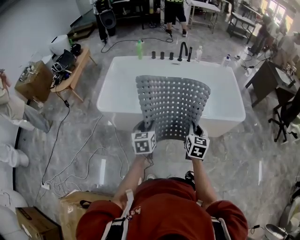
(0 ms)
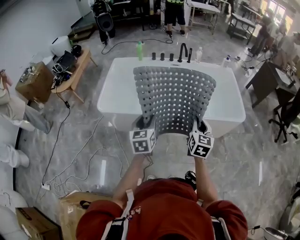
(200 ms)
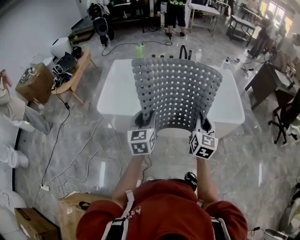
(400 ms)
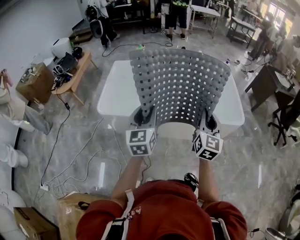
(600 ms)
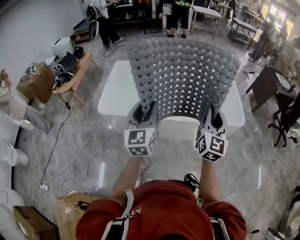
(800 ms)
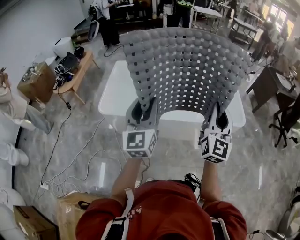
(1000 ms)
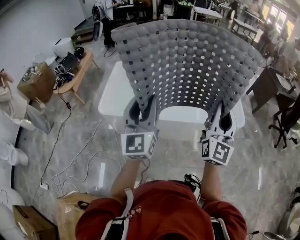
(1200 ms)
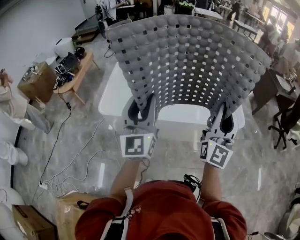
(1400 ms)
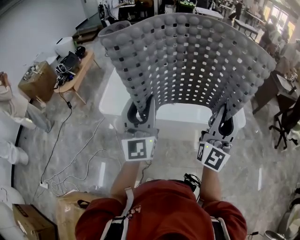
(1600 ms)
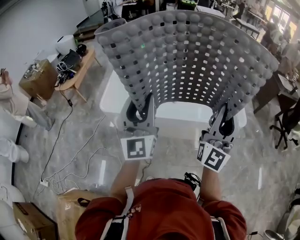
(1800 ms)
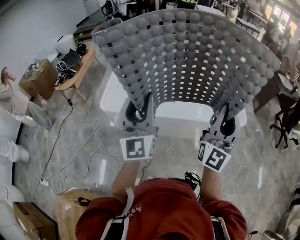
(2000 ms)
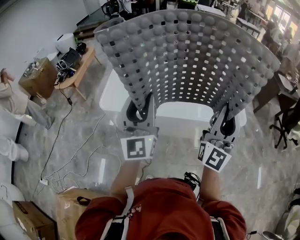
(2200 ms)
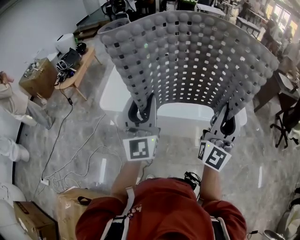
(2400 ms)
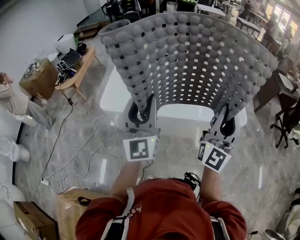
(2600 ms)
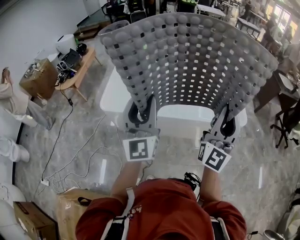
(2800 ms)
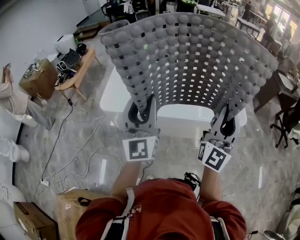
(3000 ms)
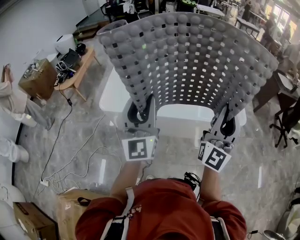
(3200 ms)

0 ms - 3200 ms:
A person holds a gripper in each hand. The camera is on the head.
0 ms - 1600 ms: Both grippers move upward, roughly 30 cm. The right gripper angles its fingers upward, by some 60 degrees. Meanwhile the left gripper tilts its fingers about 50 degrees upward.
1600 ms - 3200 ms: The grippers make only small movements.

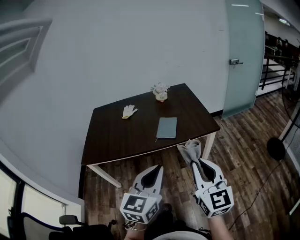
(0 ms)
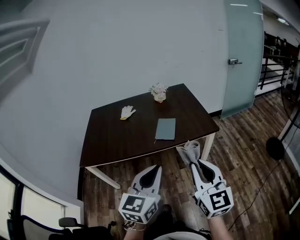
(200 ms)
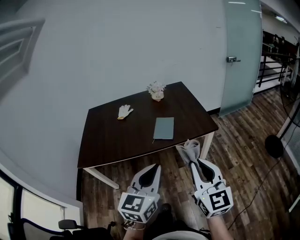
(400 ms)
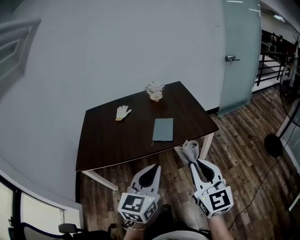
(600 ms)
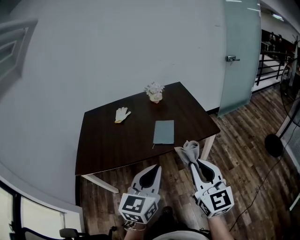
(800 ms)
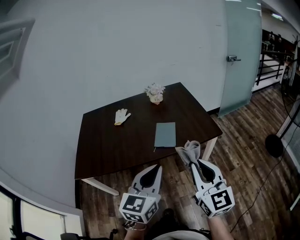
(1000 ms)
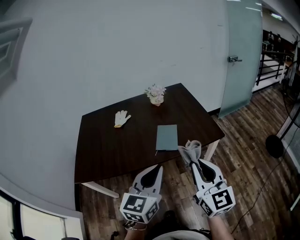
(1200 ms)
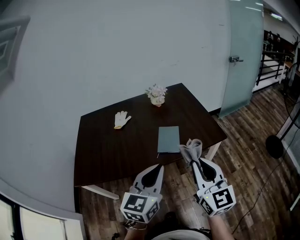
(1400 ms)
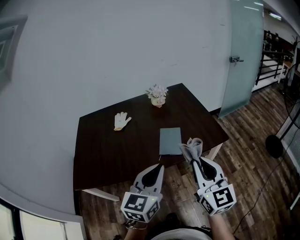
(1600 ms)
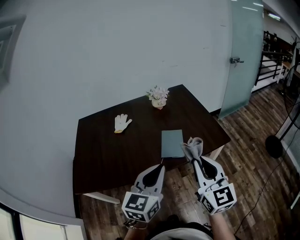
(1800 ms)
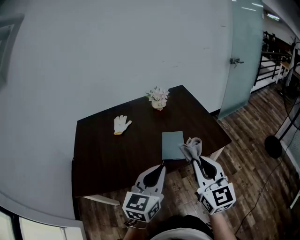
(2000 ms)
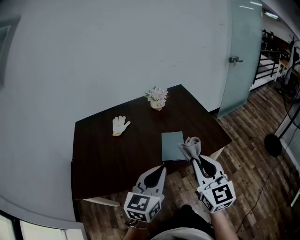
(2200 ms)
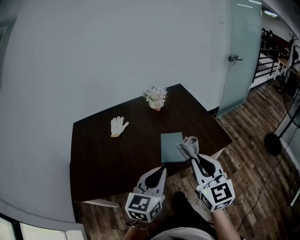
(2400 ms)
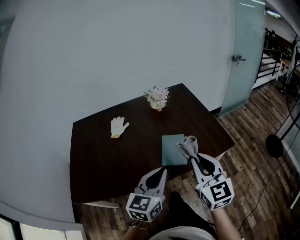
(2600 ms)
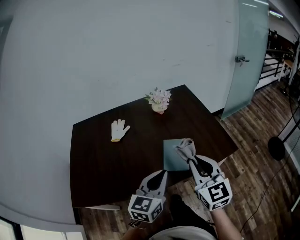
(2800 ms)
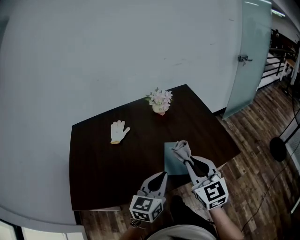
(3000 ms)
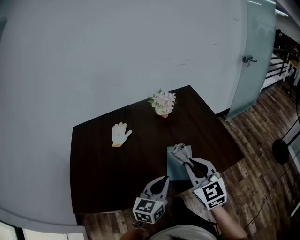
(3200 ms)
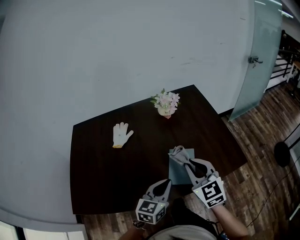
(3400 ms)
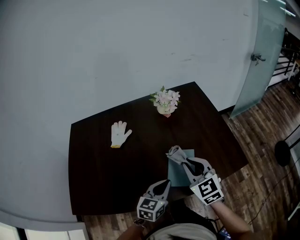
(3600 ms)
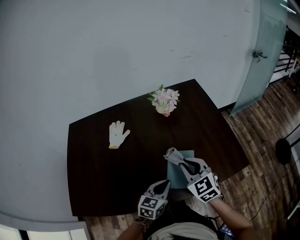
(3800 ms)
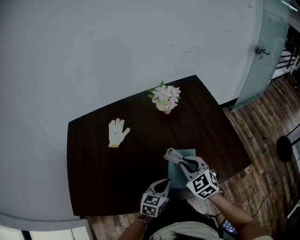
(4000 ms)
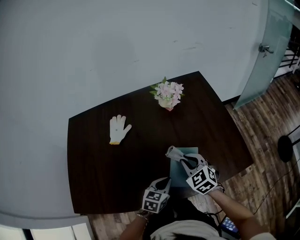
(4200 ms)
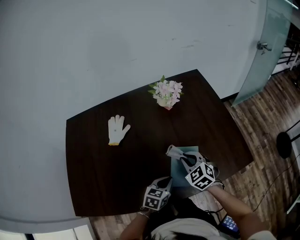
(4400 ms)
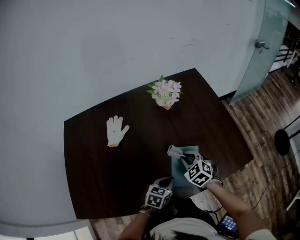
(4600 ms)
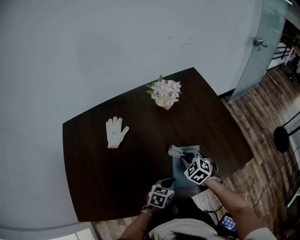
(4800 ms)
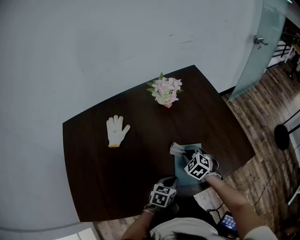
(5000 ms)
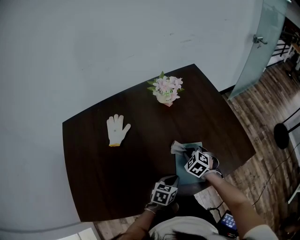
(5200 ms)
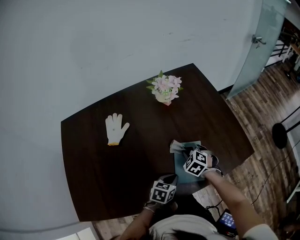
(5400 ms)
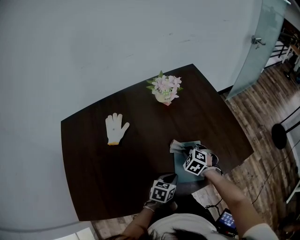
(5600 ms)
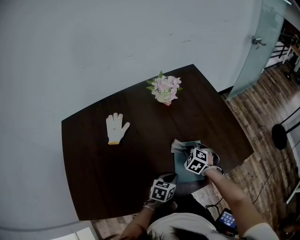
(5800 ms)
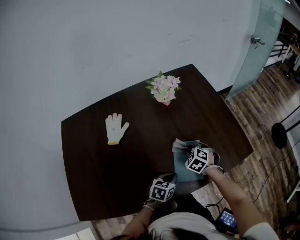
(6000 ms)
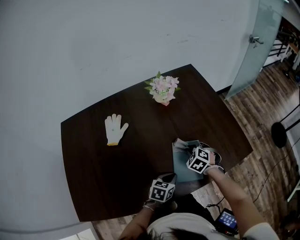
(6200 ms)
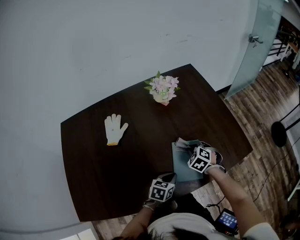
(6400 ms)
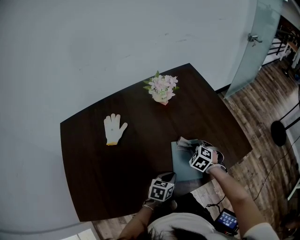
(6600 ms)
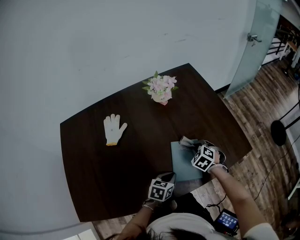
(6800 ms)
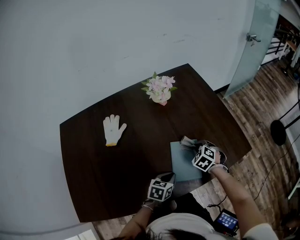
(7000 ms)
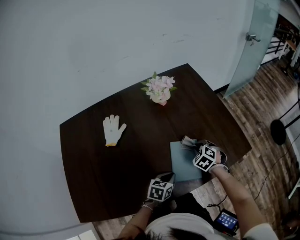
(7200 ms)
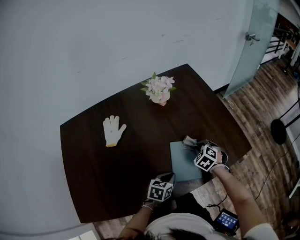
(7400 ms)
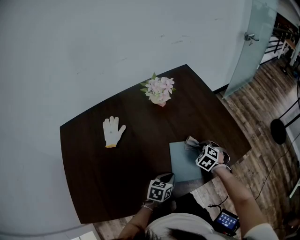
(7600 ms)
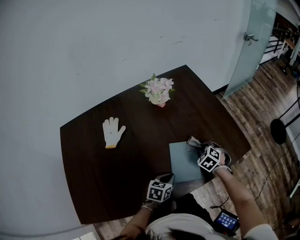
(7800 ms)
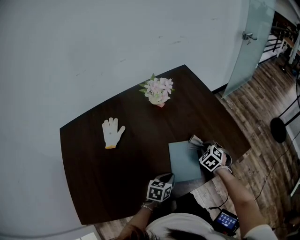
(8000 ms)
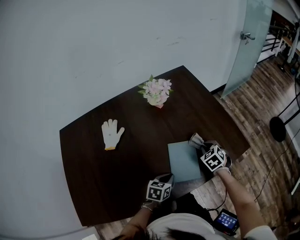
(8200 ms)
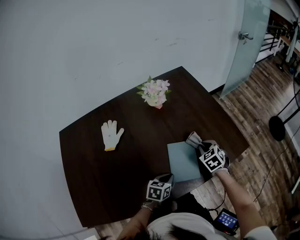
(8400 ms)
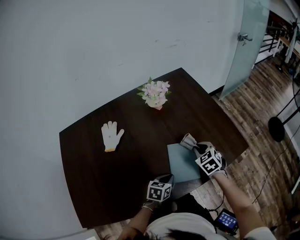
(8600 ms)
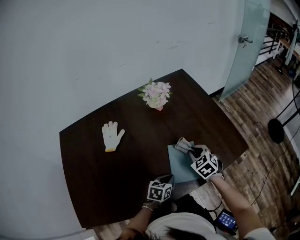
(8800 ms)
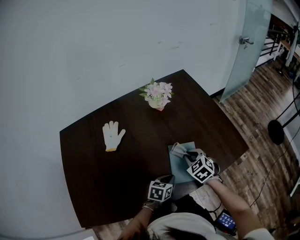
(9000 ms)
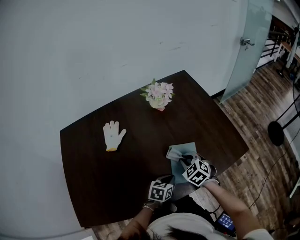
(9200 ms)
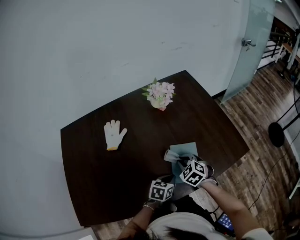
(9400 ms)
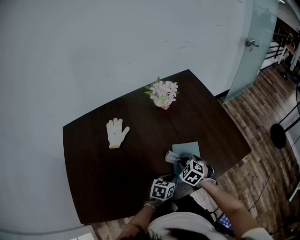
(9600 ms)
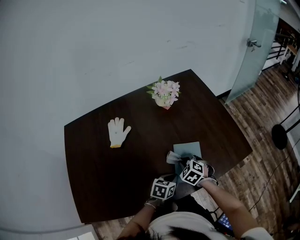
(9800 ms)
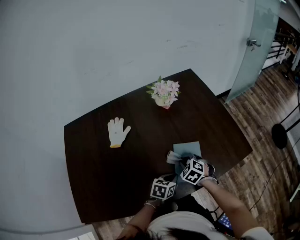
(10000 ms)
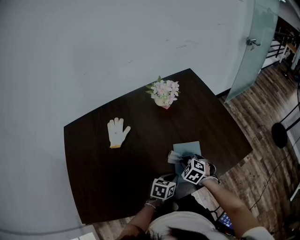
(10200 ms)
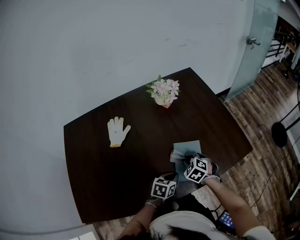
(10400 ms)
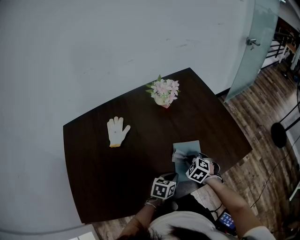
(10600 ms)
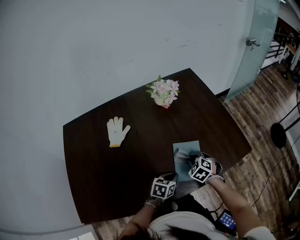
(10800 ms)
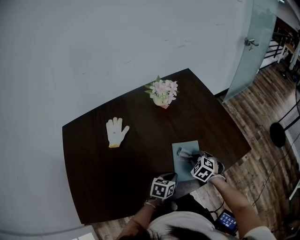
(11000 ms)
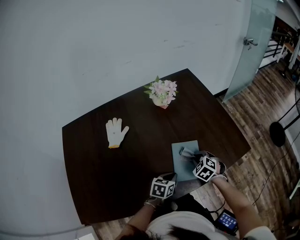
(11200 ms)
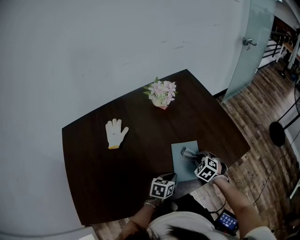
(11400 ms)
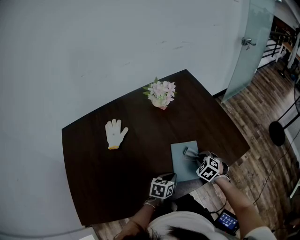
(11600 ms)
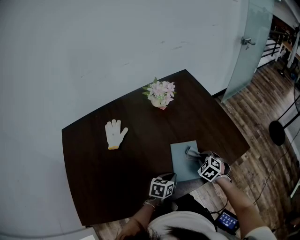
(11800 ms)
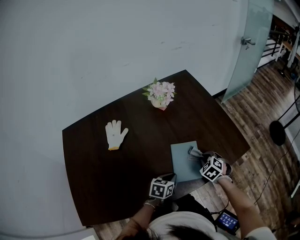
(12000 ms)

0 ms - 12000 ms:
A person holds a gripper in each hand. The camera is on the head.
0 ms - 1600 ms: Both grippers travel together forward, roughly 25 cm.
1600 ms - 3000 ms: The left gripper heads forward and downward, covering some 20 cm. Meanwhile the right gripper is displaced forward by approximately 20 cm.
3000 ms - 4400 ms: The right gripper goes about 30 cm forward and downward, and turns by approximately 30 degrees, while the left gripper shifts roughly 25 cm downward and forward, and rotates some 30 degrees.
4400 ms - 6000 ms: The right gripper shifts approximately 10 cm downward, and changes its angle by about 20 degrees.
6000 ms - 7600 ms: The right gripper is displaced to the right by some 10 cm.
7600 ms - 9000 ms: The right gripper is displaced to the left, upward and backward by about 10 cm.
9000 ms - 10400 ms: The right gripper shifts roughly 5 cm downward.
10400 ms - 12000 ms: The right gripper goes about 10 cm to the right.

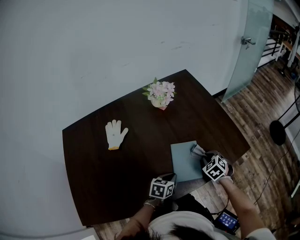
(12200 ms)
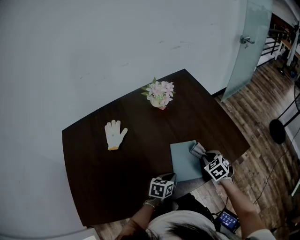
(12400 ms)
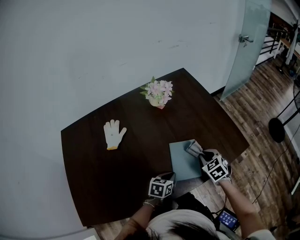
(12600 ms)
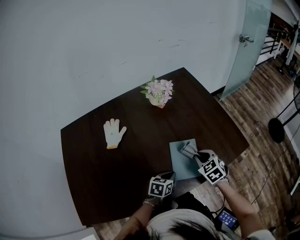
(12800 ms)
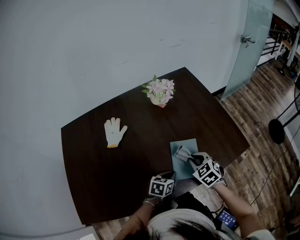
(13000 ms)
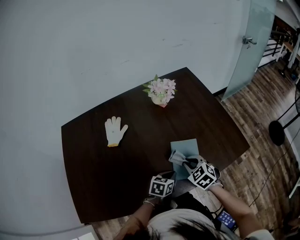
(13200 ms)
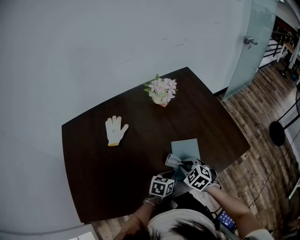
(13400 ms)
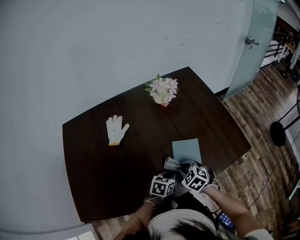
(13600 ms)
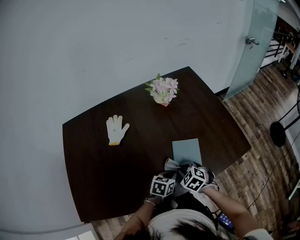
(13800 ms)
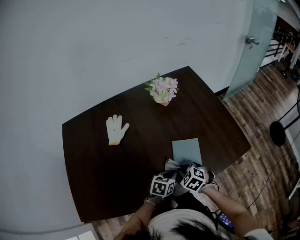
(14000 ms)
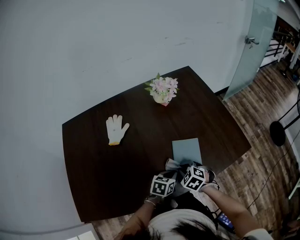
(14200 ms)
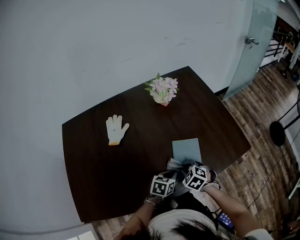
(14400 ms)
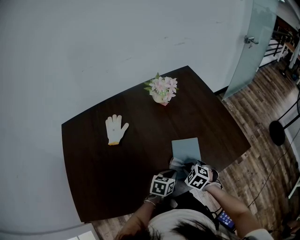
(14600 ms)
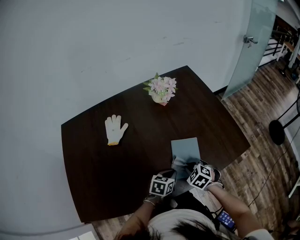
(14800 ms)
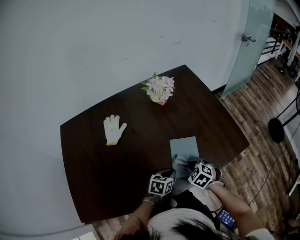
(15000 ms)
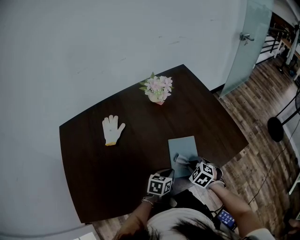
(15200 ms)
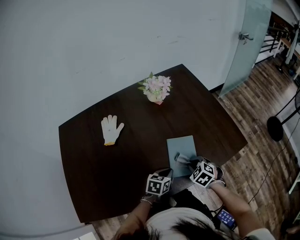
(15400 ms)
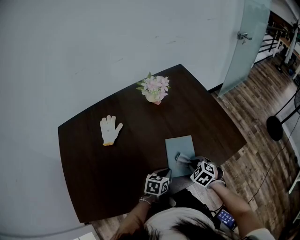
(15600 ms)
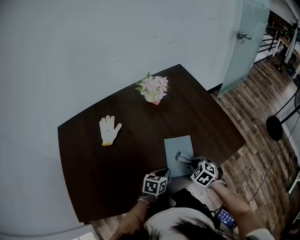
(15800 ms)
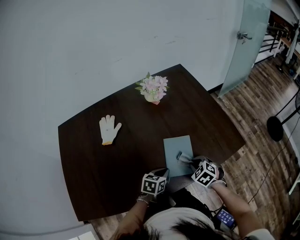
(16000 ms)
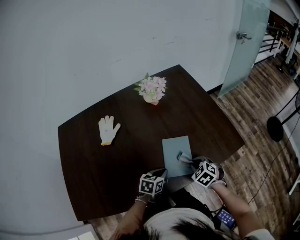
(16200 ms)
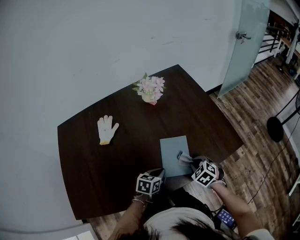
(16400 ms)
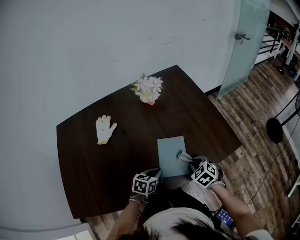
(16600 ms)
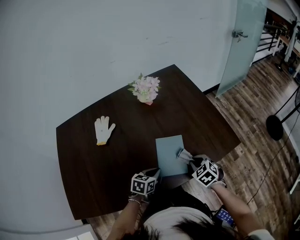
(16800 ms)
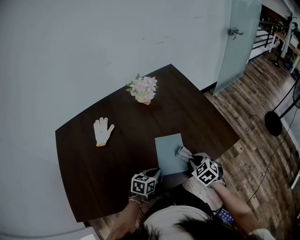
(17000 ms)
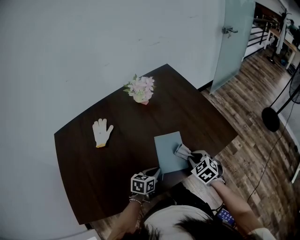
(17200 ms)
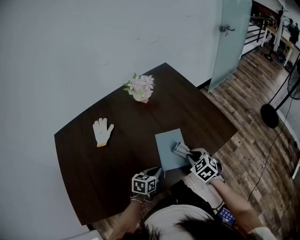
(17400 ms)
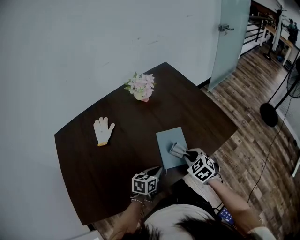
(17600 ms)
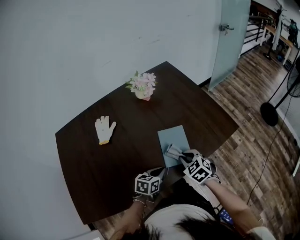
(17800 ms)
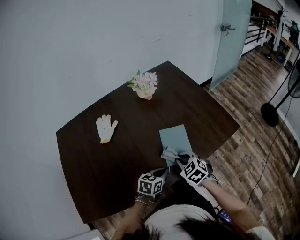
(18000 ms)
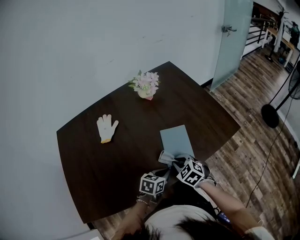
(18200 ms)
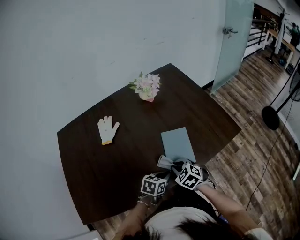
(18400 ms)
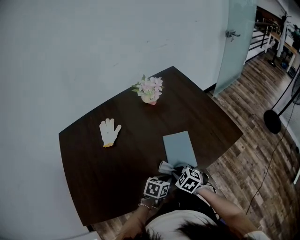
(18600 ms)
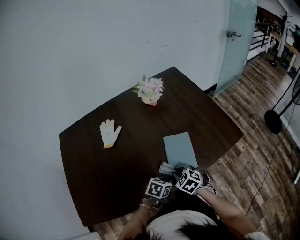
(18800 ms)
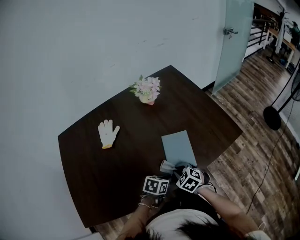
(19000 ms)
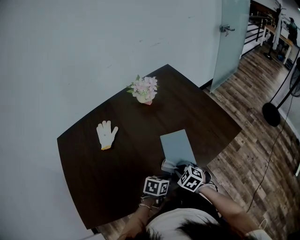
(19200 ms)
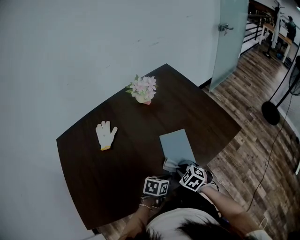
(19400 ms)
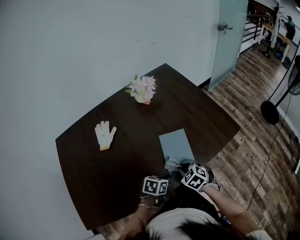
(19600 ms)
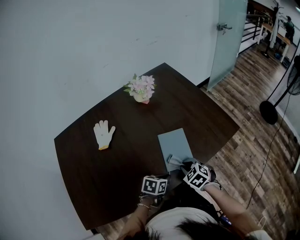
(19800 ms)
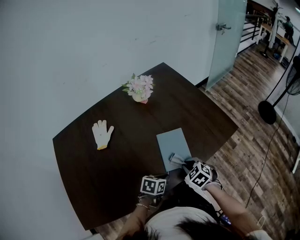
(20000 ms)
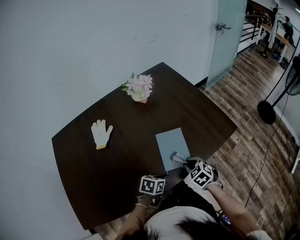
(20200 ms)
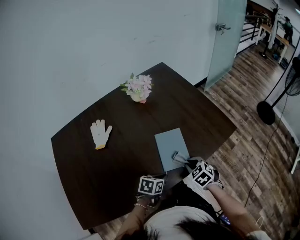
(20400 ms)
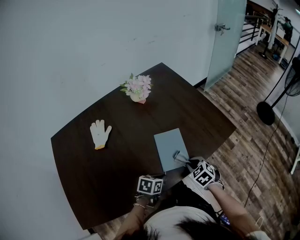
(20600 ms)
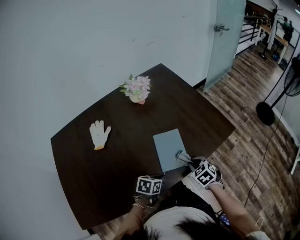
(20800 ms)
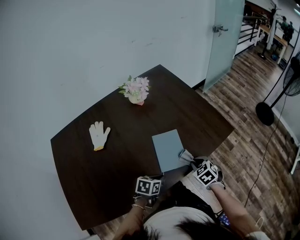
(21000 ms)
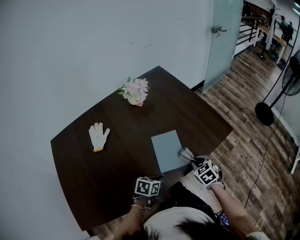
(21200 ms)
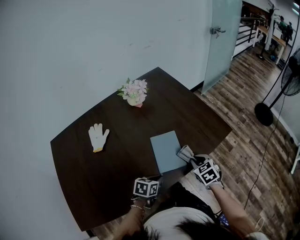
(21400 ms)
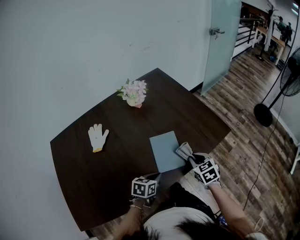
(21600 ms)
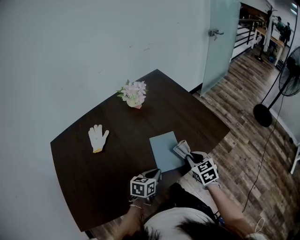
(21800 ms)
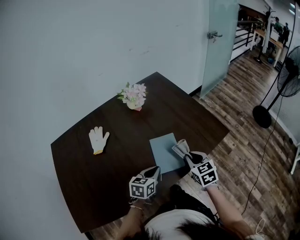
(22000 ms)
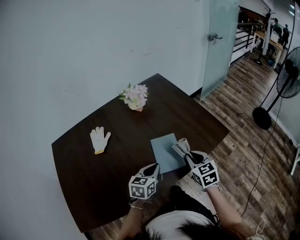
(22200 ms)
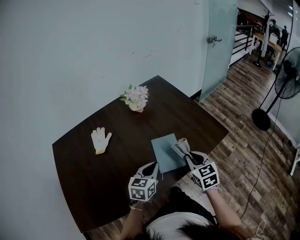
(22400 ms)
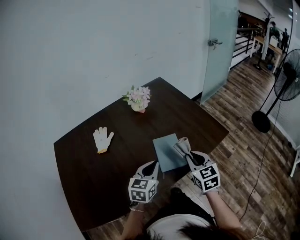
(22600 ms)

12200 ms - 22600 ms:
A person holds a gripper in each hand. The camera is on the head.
12200 ms - 13600 ms: The right gripper travels to the left and backward by roughly 15 cm, and changes its angle by some 20 degrees.
13600 ms - 15200 ms: The right gripper shifts approximately 5 cm to the right.
15200 ms - 16600 ms: The right gripper shifts approximately 10 cm to the right.
16600 ms - 18200 ms: The right gripper shifts some 15 cm to the left and backward. The left gripper heads backward, covering approximately 5 cm.
18200 ms - 19600 ms: The grippers make only small movements.
19600 ms - 21200 ms: The right gripper is displaced to the right by approximately 10 cm.
21200 ms - 22600 ms: The two grippers go some 15 cm upward. The left gripper swivels some 40 degrees; the right gripper rotates some 30 degrees.
